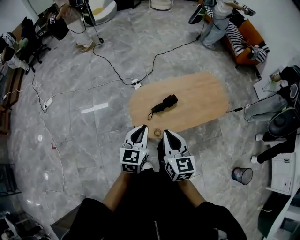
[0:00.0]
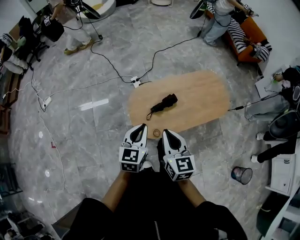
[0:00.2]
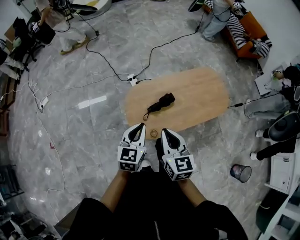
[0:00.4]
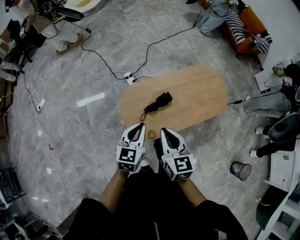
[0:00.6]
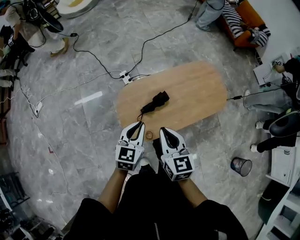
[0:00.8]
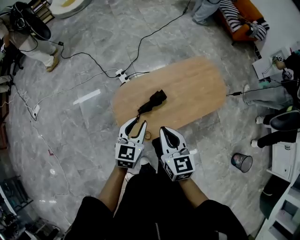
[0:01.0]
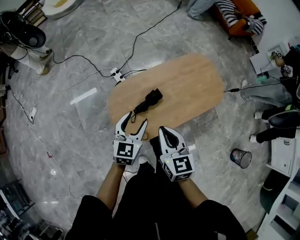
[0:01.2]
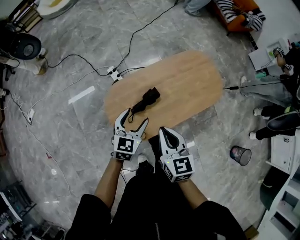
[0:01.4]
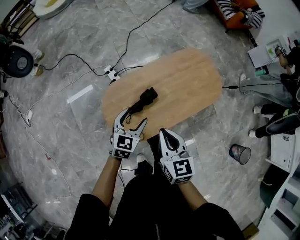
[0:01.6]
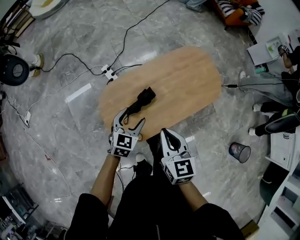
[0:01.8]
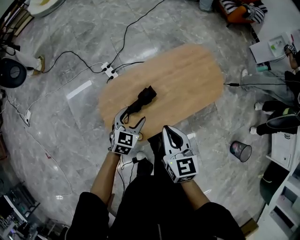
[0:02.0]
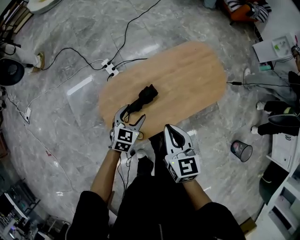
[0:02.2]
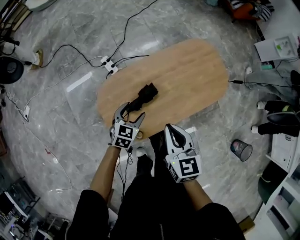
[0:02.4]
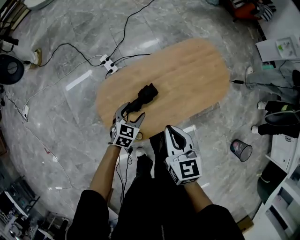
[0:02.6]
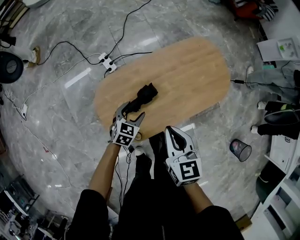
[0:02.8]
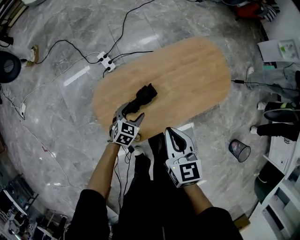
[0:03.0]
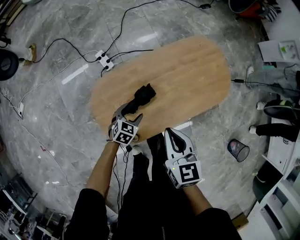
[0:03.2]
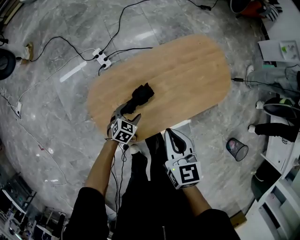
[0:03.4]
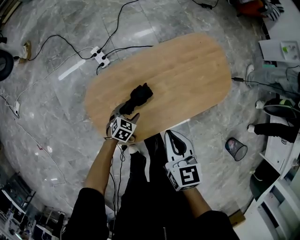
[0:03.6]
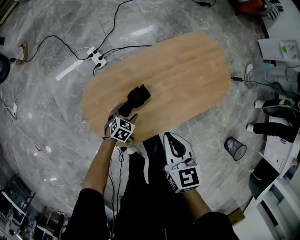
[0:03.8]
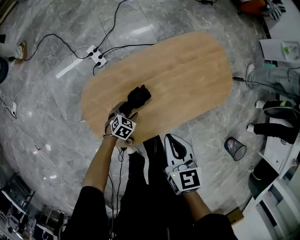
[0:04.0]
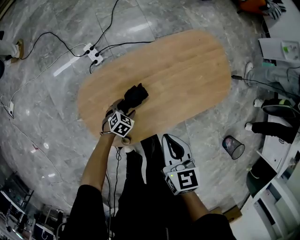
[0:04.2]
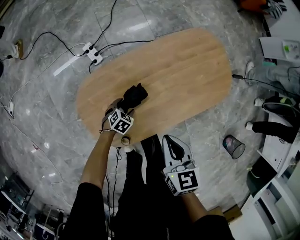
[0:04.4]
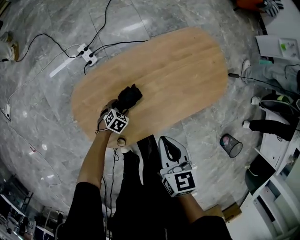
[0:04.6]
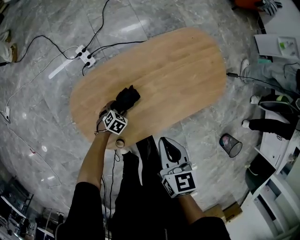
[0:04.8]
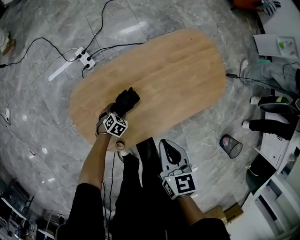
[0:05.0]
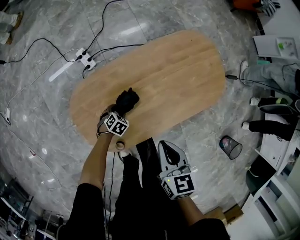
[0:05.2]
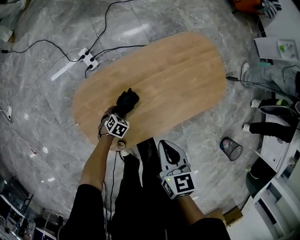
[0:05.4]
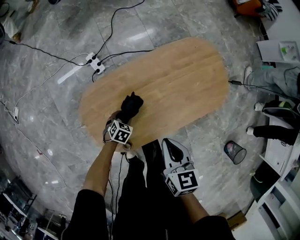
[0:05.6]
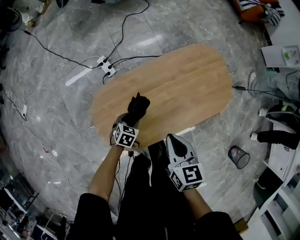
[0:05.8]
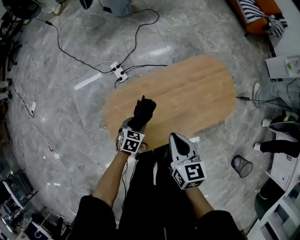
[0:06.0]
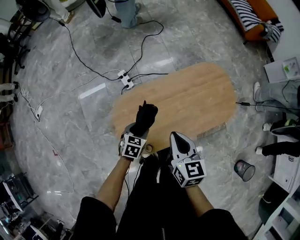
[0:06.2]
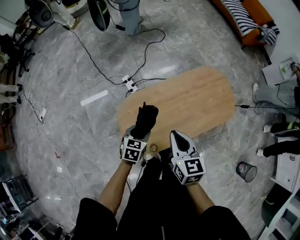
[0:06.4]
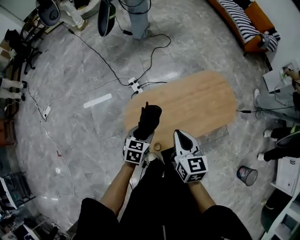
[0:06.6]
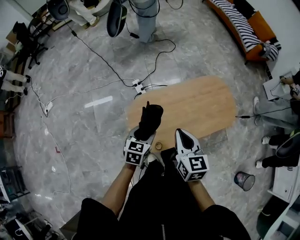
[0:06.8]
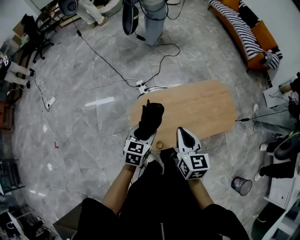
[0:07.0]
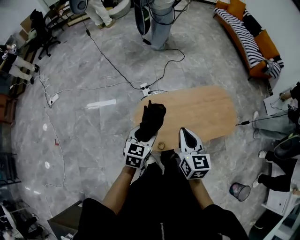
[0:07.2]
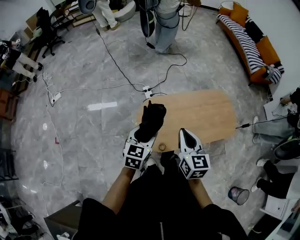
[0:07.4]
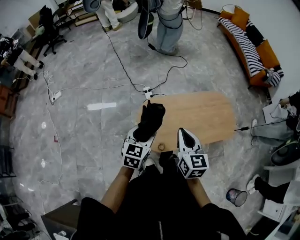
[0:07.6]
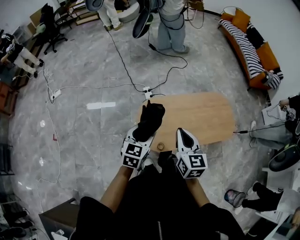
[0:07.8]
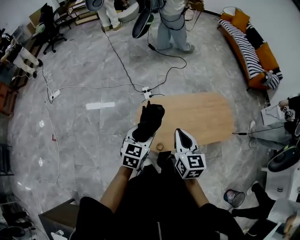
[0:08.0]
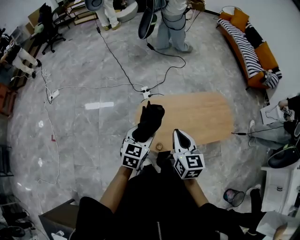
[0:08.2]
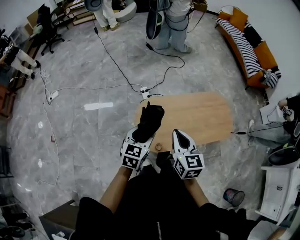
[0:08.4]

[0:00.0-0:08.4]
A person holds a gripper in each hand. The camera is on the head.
0:00.0 to 0:01.4: The left gripper moves forward, downward and to the right, about 25 cm, and opens its fingers; the right gripper shifts some 20 cm forward, to the right and downward.
0:01.4 to 0:02.8: The right gripper is displaced forward and downward by some 10 cm, while the left gripper travels downward by about 20 cm, and changes its angle by roughly 20 degrees.
0:02.8 to 0:04.2: The left gripper shifts approximately 15 cm downward, and rotates some 20 degrees. The right gripper heads downward, covering approximately 5 cm.
0:04.2 to 0:05.6: The grippers stay close to where they were, moving slightly.
0:05.6 to 0:07.0: The left gripper moves upward, about 40 cm, and angles its fingers upward, by about 40 degrees; the right gripper moves upward, to the left and backward, roughly 25 cm, and rotates roughly 20 degrees.
0:07.0 to 0:08.4: The right gripper moves roughly 5 cm; the left gripper is displaced upward by roughly 5 cm.

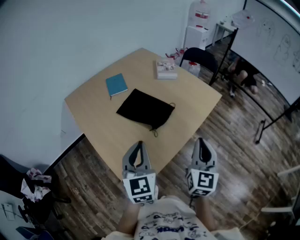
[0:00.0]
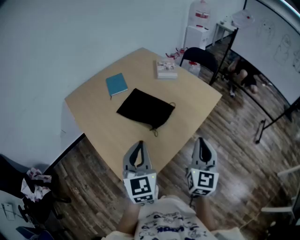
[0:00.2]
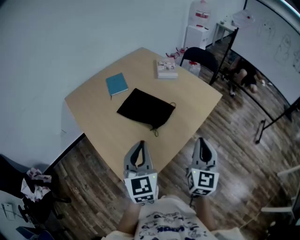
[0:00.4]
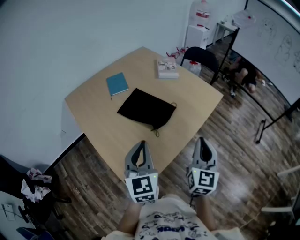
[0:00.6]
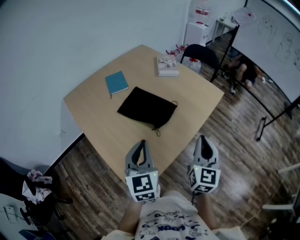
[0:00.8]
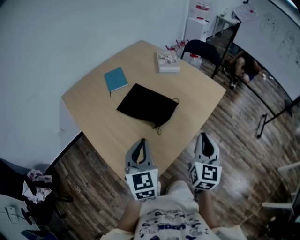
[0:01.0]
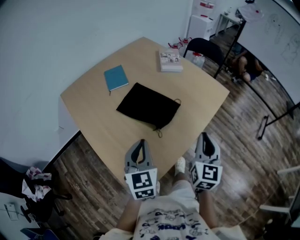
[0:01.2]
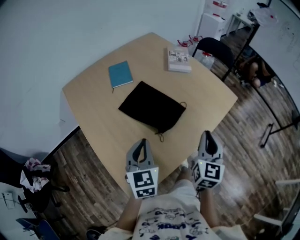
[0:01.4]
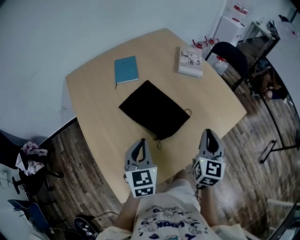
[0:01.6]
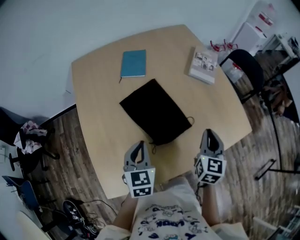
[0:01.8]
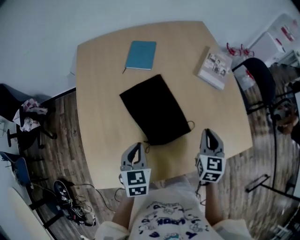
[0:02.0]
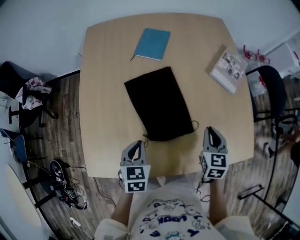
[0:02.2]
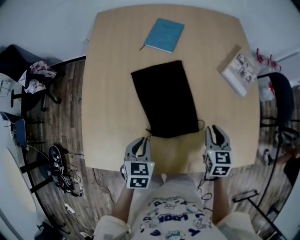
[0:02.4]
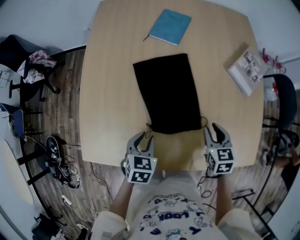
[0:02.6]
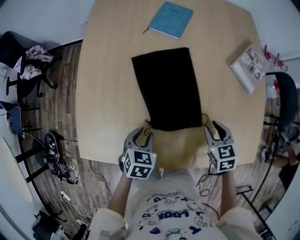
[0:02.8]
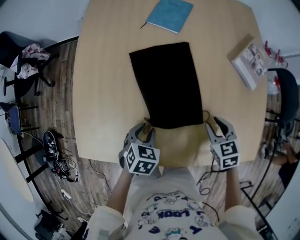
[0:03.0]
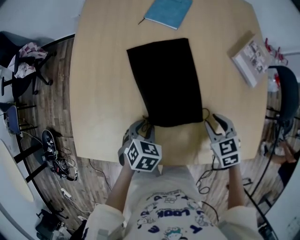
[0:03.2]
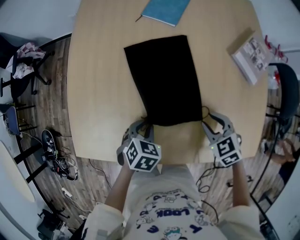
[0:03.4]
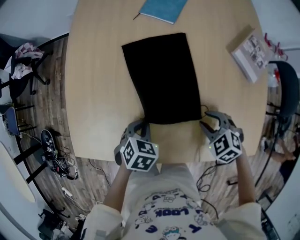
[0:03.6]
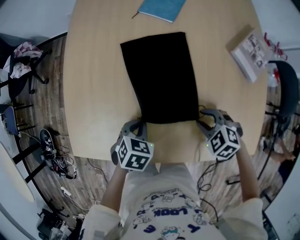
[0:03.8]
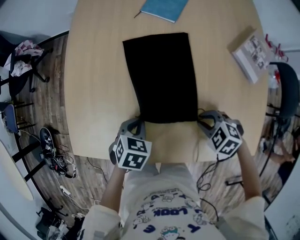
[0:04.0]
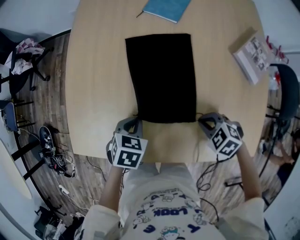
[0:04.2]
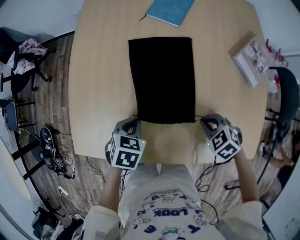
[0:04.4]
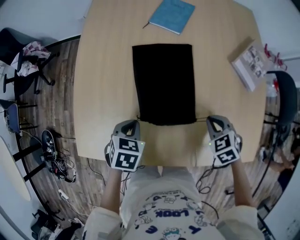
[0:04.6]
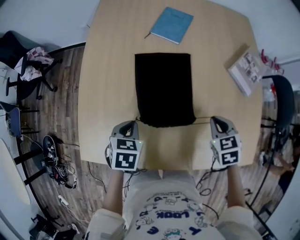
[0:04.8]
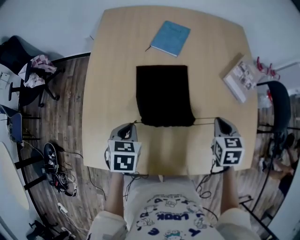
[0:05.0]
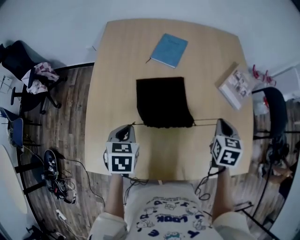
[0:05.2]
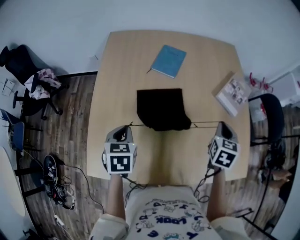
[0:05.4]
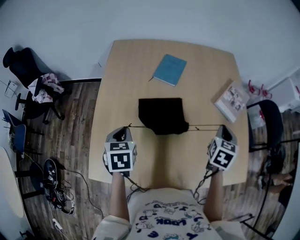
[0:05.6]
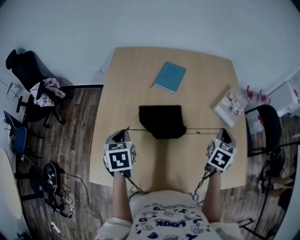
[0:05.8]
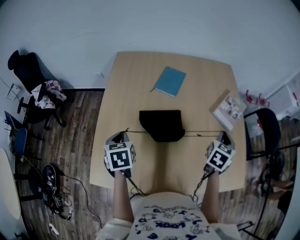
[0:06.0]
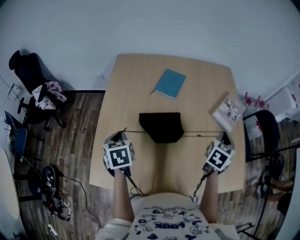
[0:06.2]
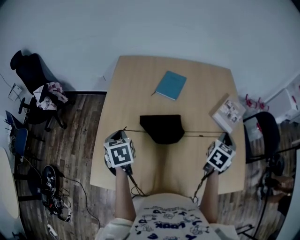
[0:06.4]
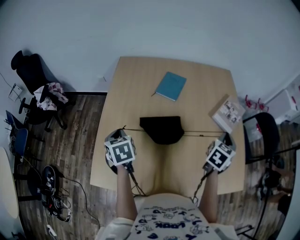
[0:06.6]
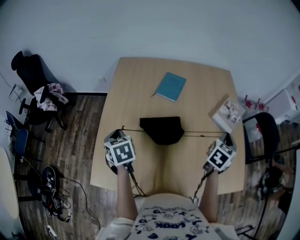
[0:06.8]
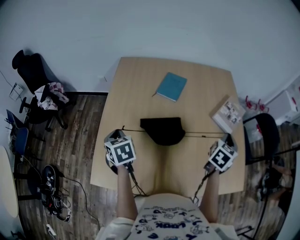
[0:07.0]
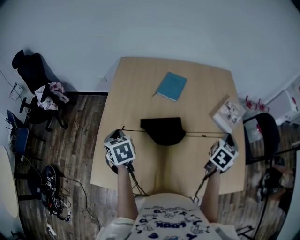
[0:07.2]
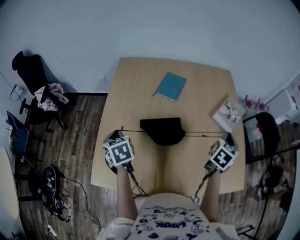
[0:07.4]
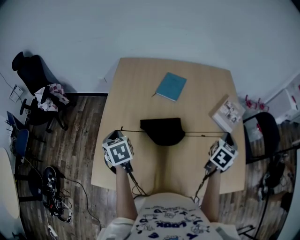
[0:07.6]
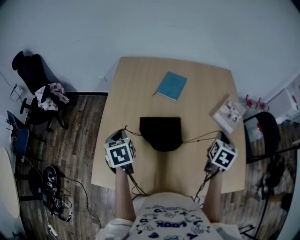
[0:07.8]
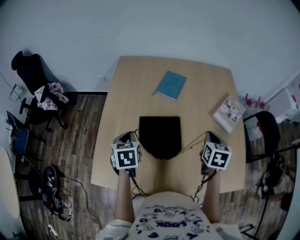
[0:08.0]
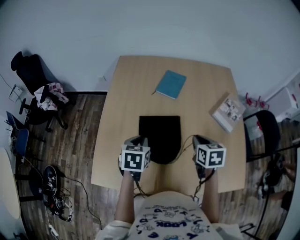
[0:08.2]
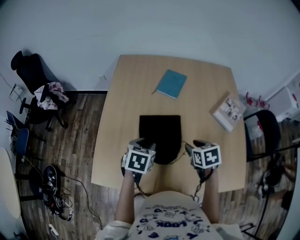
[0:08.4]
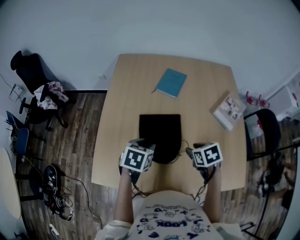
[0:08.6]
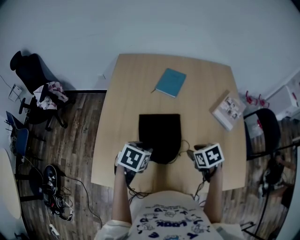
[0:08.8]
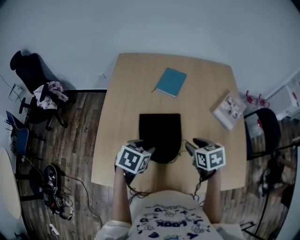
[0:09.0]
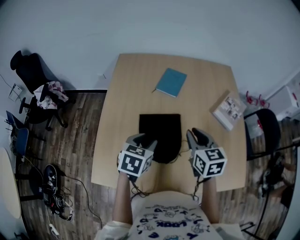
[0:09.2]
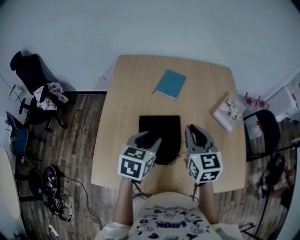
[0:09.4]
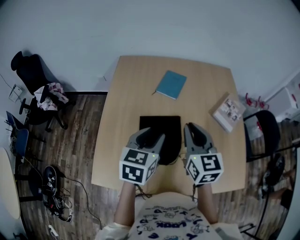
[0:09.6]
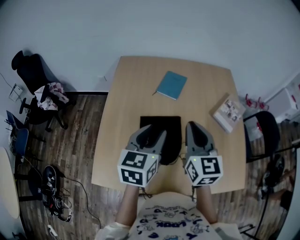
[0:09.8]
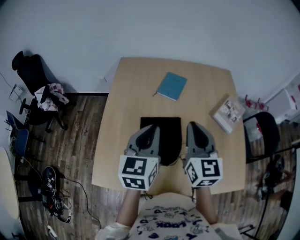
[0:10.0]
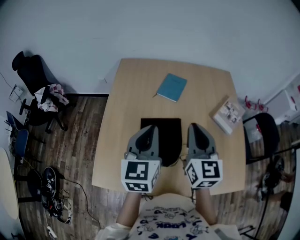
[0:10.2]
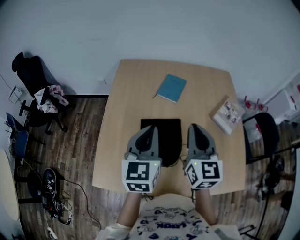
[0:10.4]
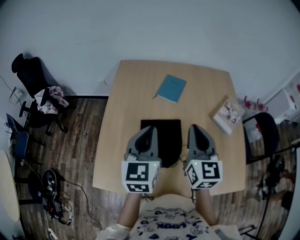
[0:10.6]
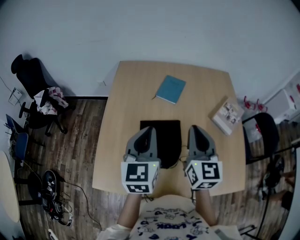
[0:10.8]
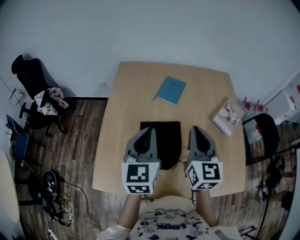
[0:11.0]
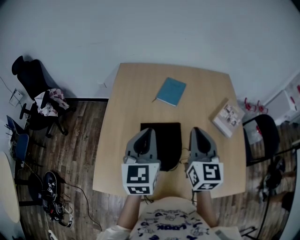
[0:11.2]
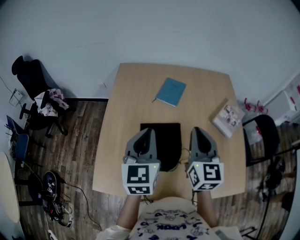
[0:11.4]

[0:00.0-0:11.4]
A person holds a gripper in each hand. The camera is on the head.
0:00.0 to 0:01.4: Both grippers move forward and downward, about 15 cm.
0:01.4 to 0:02.8: The right gripper moves some 30 cm, tips its fingers downward by approximately 40 degrees, and opens up. Meanwhile the left gripper goes approximately 20 cm downward, points its fingers some 40 degrees further downward, and opens its fingers.
0:02.8 to 0:04.2: The left gripper closes. Meanwhile the right gripper moves approximately 5 cm, turns by roughly 50 degrees, and closes up.
0:04.2 to 0:05.6: Both grippers travel together upward, approximately 20 cm. The left gripper rotates roughly 30 degrees; the right gripper points its fingers approximately 30 degrees further upward.
0:05.6 to 0:07.2: The left gripper goes approximately 5 cm to the left, and rotates some 20 degrees.
0:07.2 to 0:08.6: The right gripper moves to the left, downward and backward, about 20 cm, tips its fingers downward by approximately 30 degrees, and opens up. The left gripper goes roughly 15 cm to the right, turns by about 40 degrees, and opens.
0:08.6 to 0:10.0: Both grippers move upward, about 20 cm. The left gripper tilts its fingers roughly 40 degrees upward, and closes. The right gripper points its fingers some 60 degrees further upward, and closes.
0:10.0 to 0:11.4: The grippers stay close to where they were, moving slightly.

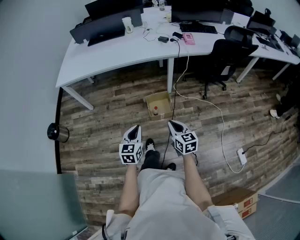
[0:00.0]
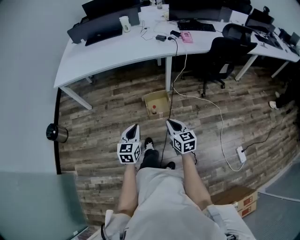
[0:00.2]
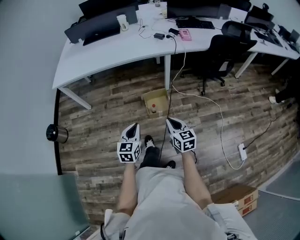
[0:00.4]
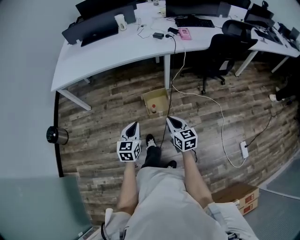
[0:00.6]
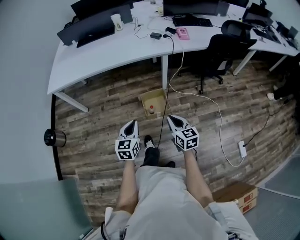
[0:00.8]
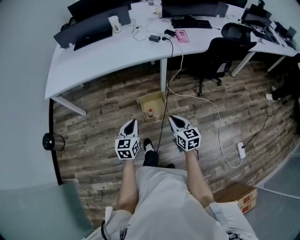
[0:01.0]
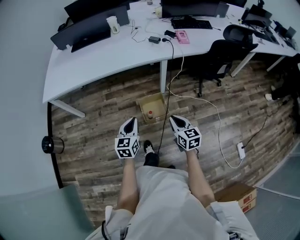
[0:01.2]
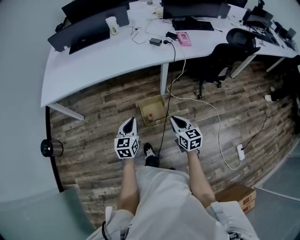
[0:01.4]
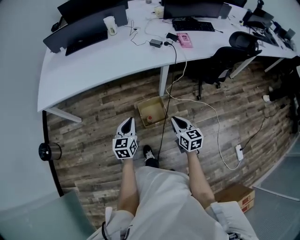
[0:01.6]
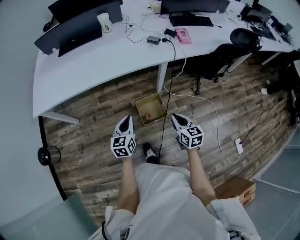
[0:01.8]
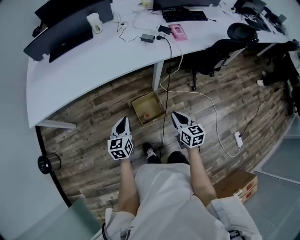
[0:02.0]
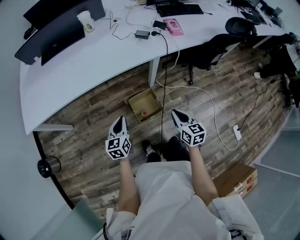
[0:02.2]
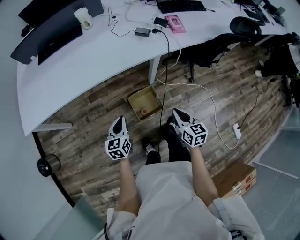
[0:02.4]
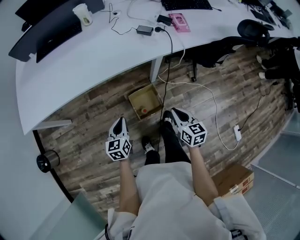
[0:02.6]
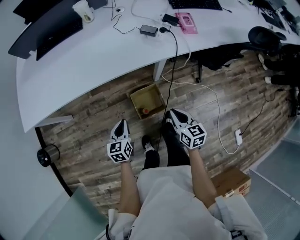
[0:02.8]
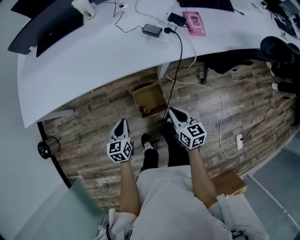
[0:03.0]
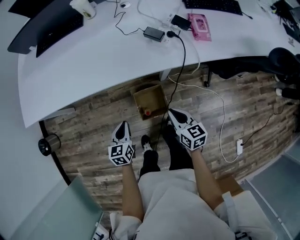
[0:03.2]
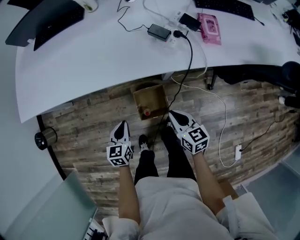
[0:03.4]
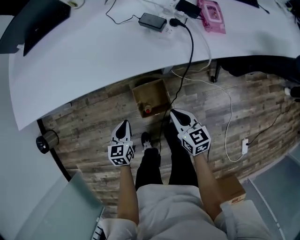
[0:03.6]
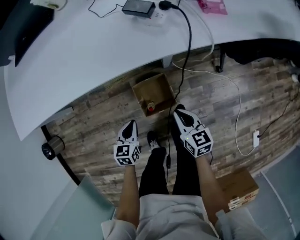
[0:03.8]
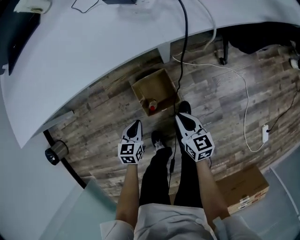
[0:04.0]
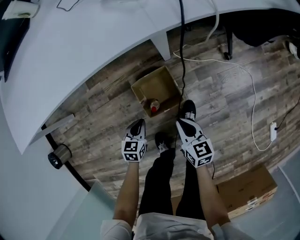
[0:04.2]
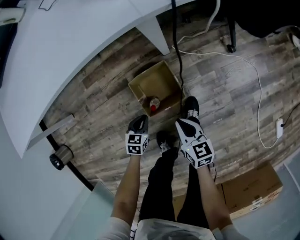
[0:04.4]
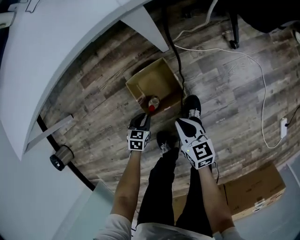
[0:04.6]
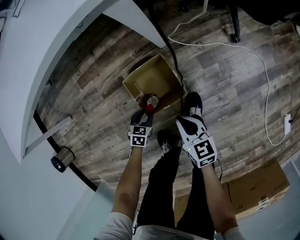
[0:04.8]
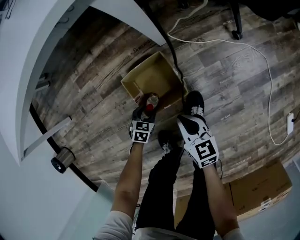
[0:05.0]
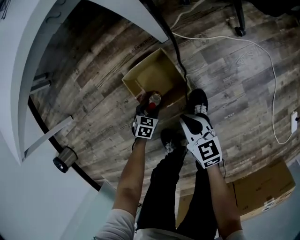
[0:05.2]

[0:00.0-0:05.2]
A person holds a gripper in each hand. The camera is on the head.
0:00.0 to 0:01.8: The two grippers go roughly 30 cm forward.
0:01.8 to 0:03.4: The grippers both shift forward and downward by some 25 cm.
0:03.4 to 0:05.2: Both grippers move downward, about 50 cm. The left gripper rotates roughly 50 degrees, and opens its fingers.
